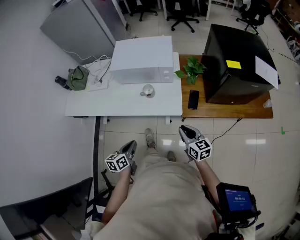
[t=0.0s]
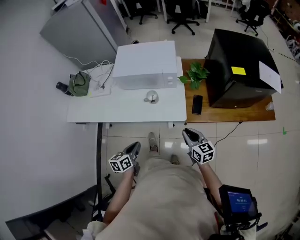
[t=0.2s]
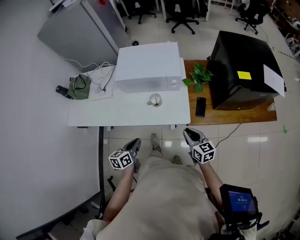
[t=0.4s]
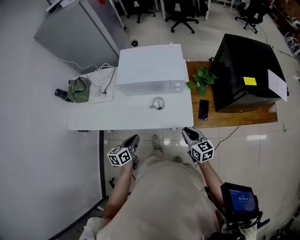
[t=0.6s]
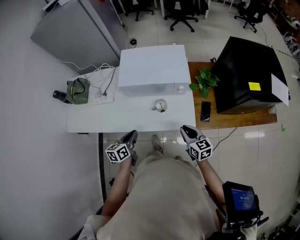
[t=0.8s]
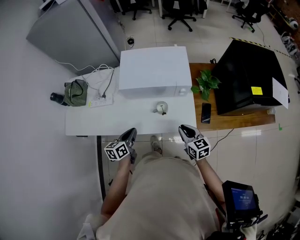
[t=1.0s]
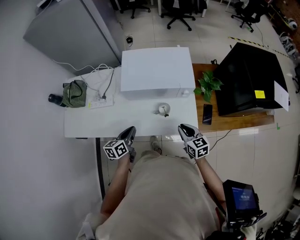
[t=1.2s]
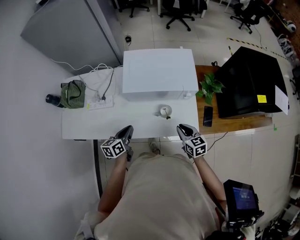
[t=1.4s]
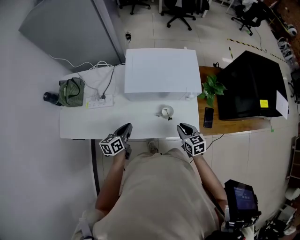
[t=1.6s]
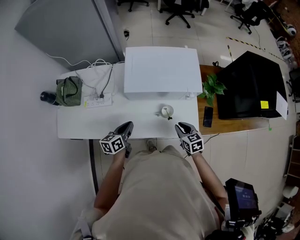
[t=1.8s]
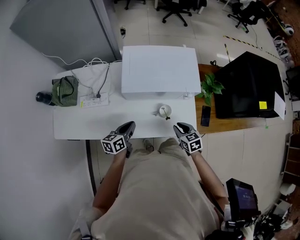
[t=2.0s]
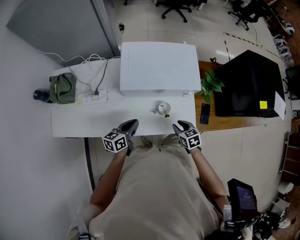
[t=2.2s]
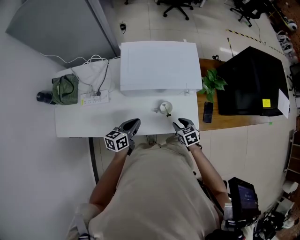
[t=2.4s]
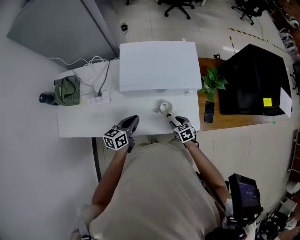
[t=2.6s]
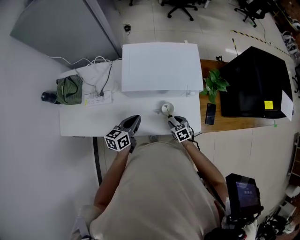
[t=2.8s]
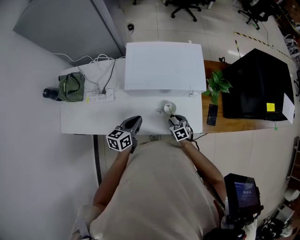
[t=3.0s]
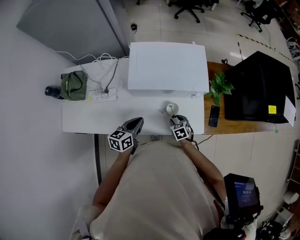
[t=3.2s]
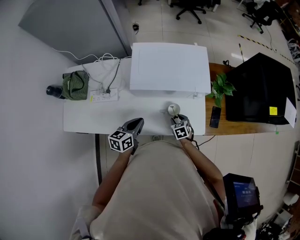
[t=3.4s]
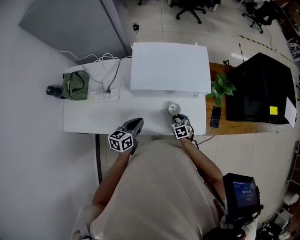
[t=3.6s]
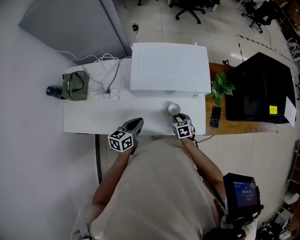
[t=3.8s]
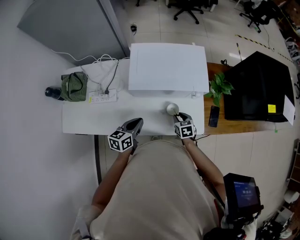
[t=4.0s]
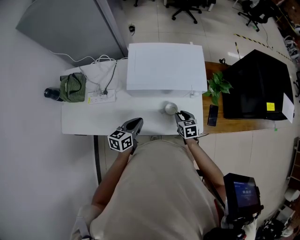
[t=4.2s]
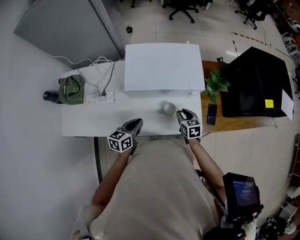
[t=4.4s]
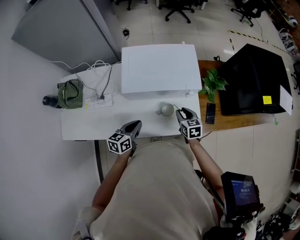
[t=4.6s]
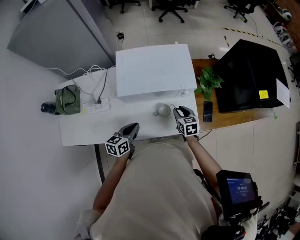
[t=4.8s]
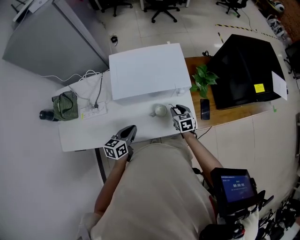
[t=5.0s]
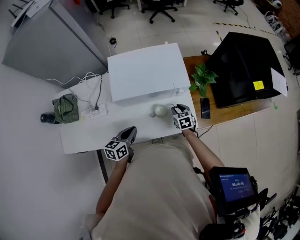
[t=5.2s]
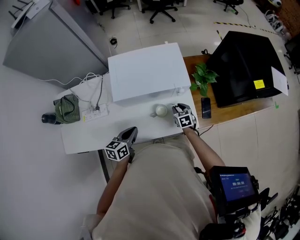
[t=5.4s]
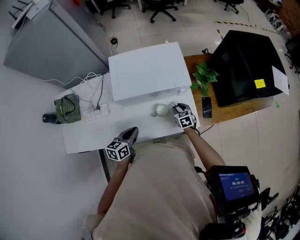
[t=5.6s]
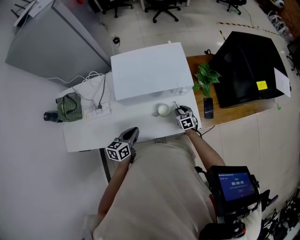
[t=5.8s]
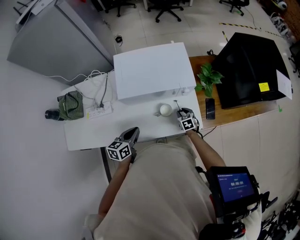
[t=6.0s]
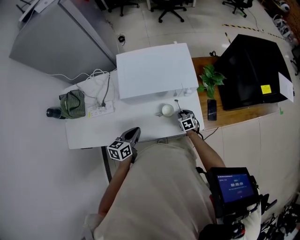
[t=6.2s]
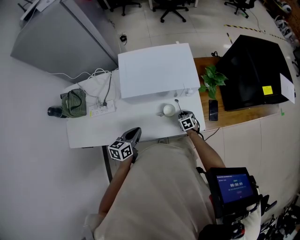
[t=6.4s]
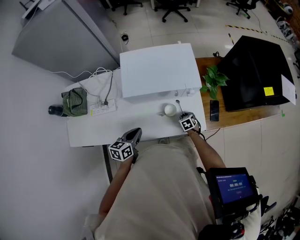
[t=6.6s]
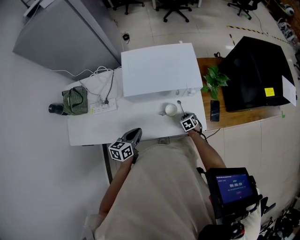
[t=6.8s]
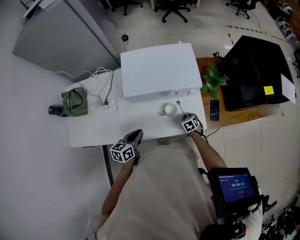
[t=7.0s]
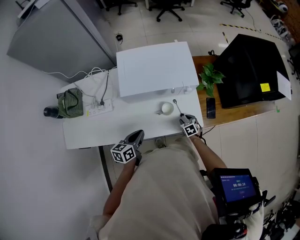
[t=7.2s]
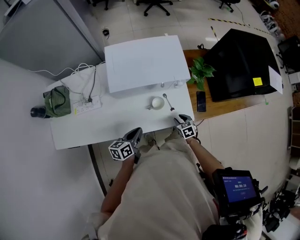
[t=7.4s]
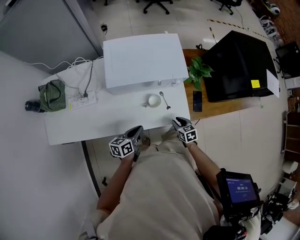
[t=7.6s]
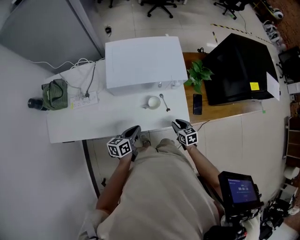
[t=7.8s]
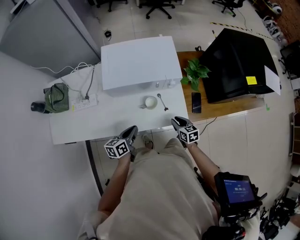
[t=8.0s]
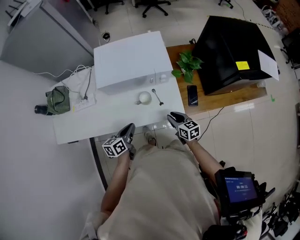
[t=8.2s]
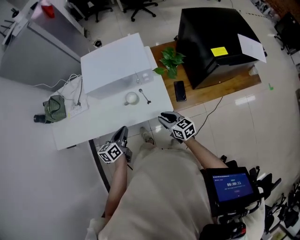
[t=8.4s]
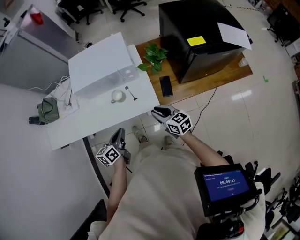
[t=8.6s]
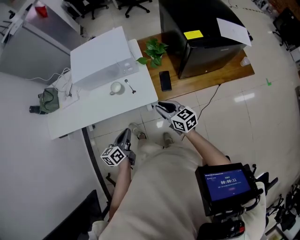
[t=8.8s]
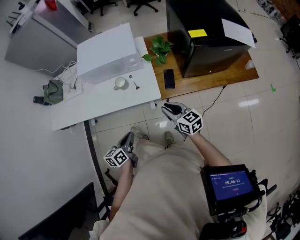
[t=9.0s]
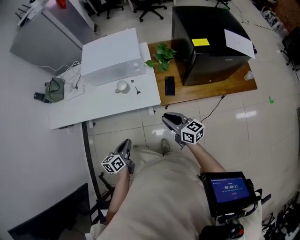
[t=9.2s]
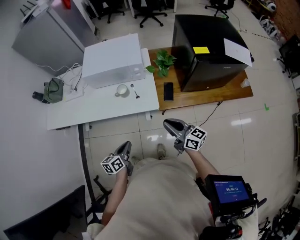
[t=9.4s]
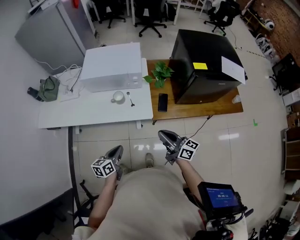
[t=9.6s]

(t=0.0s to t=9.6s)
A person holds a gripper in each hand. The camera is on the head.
t=0.0s - t=1.6s: Both grippers travel together forward and to the left, roughly 30 cm.
t=1.6s - t=3.2s: The right gripper heads downward, covering some 15 cm, turns by some 20 degrees, and opens its fingers; the left gripper moves about 5 cm.
t=3.2s - t=4.8s: The right gripper travels upward, forward and to the right by about 15 cm, and swivels some 20 degrees.
t=4.8s - t=6.4s: The right gripper moves downward, some 15 cm, and rotates roughly 20 degrees.
t=6.4s - t=8.0s: The right gripper is displaced upward and backward by approximately 15 cm, and turns by about 20 degrees; the left gripper goes roughly 5 cm to the right.
t=8.0s - t=9.6s: The left gripper travels backward and to the right by some 30 cm. The right gripper moves upward, backward and to the right, about 30 cm, tips its fingers upward by some 40 degrees, and closes its fingers.

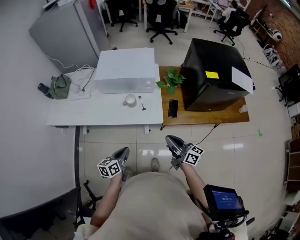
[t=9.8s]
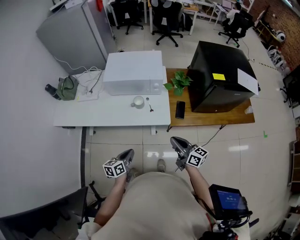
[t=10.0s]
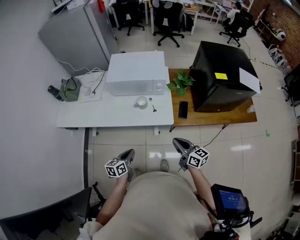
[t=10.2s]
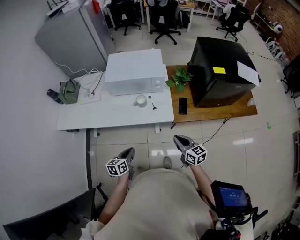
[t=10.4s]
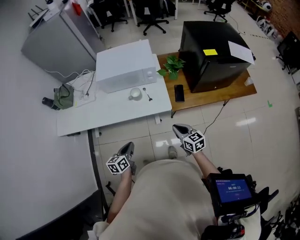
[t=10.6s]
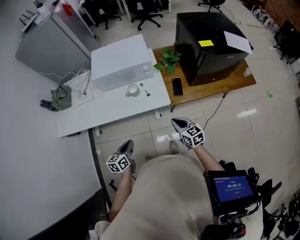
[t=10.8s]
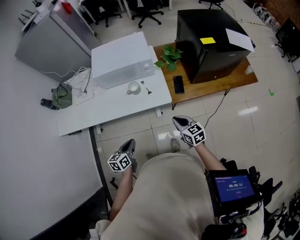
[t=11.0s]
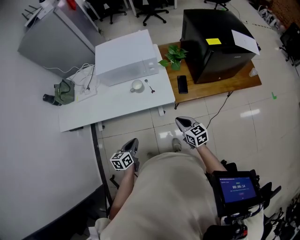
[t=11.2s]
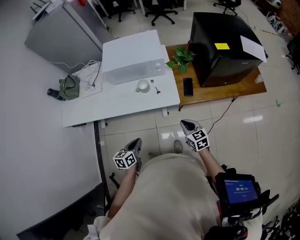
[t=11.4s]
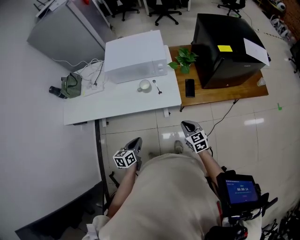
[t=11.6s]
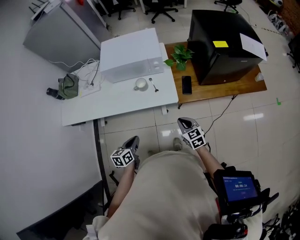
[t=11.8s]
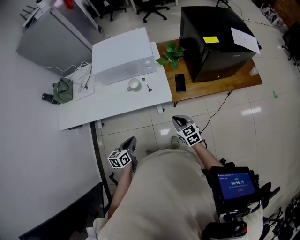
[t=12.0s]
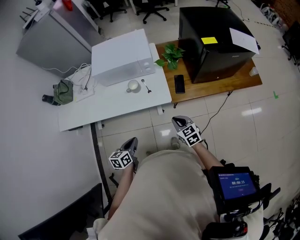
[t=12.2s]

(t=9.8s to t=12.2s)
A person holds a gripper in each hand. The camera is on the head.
t=9.8s - t=11.0s: The left gripper travels to the left by roughly 5 cm, while the right gripper shifts about 10 cm downward, and tips its fingers downward by roughly 30 degrees.
t=11.0s - t=12.2s: The grippers stay close to where they were, moving slightly.

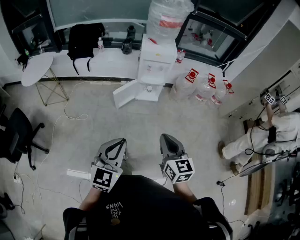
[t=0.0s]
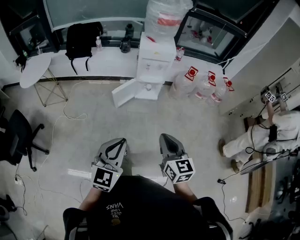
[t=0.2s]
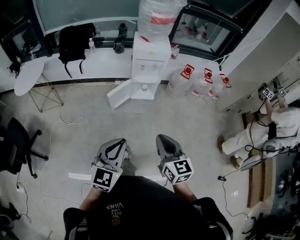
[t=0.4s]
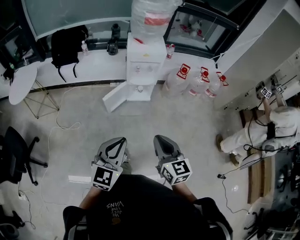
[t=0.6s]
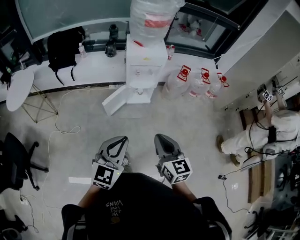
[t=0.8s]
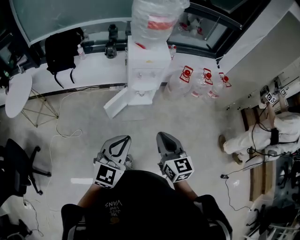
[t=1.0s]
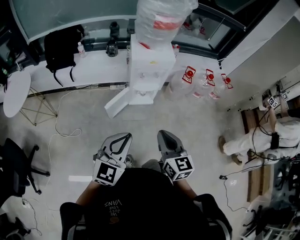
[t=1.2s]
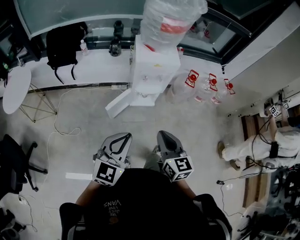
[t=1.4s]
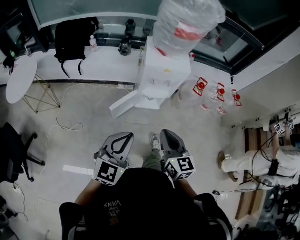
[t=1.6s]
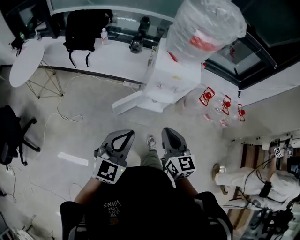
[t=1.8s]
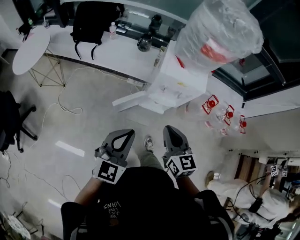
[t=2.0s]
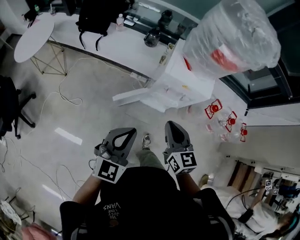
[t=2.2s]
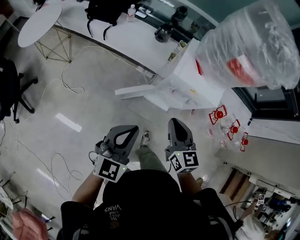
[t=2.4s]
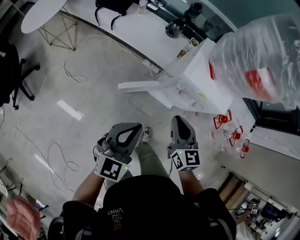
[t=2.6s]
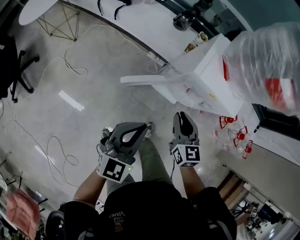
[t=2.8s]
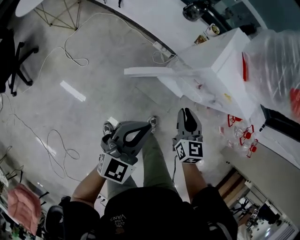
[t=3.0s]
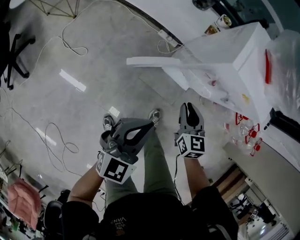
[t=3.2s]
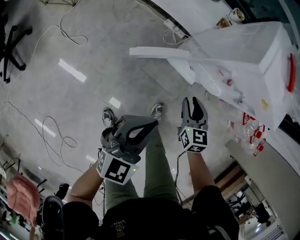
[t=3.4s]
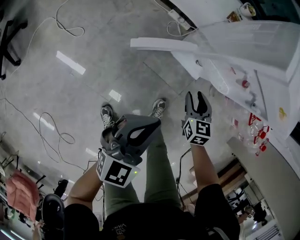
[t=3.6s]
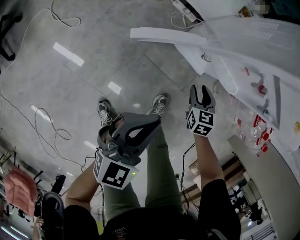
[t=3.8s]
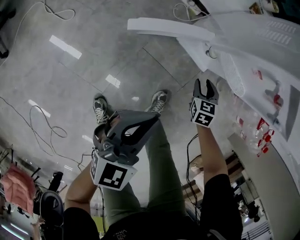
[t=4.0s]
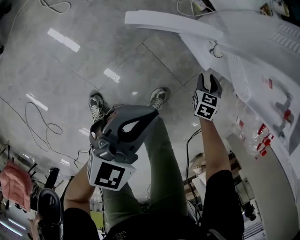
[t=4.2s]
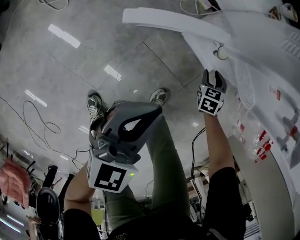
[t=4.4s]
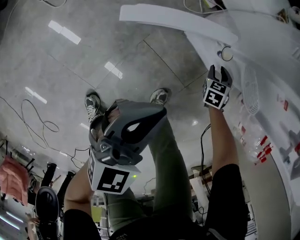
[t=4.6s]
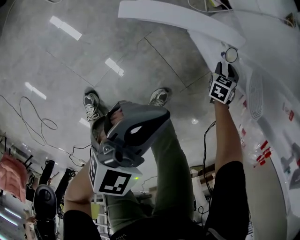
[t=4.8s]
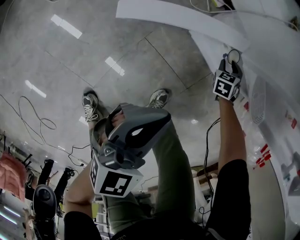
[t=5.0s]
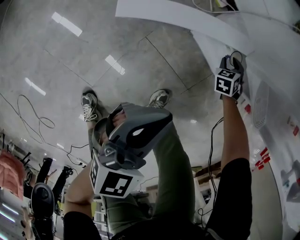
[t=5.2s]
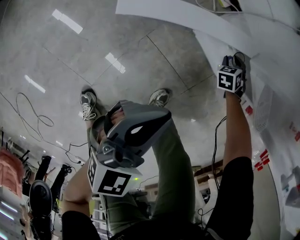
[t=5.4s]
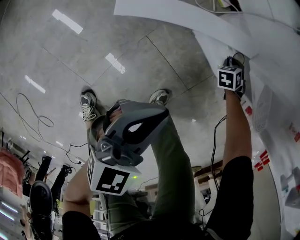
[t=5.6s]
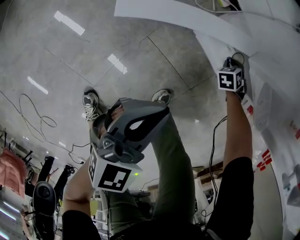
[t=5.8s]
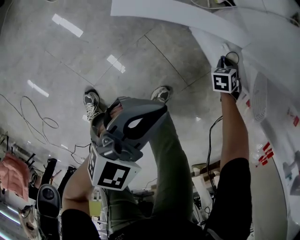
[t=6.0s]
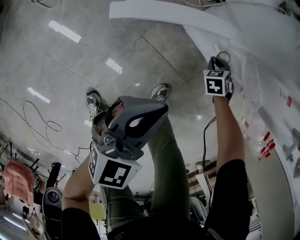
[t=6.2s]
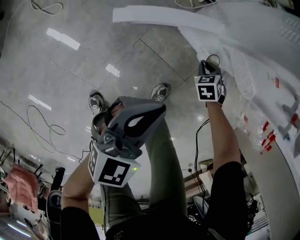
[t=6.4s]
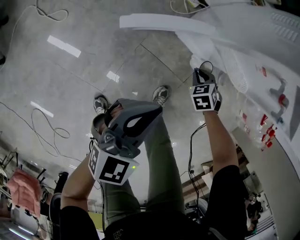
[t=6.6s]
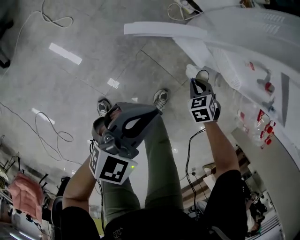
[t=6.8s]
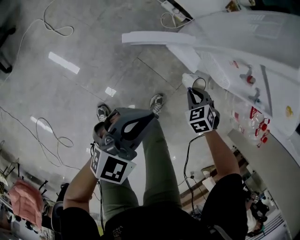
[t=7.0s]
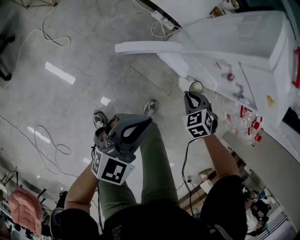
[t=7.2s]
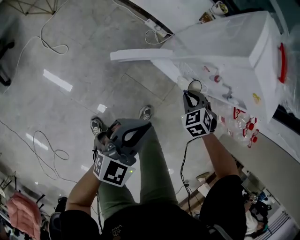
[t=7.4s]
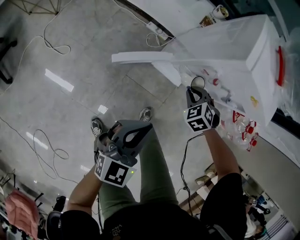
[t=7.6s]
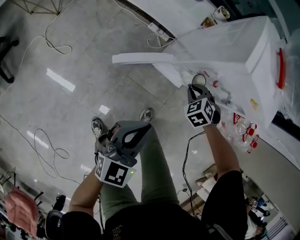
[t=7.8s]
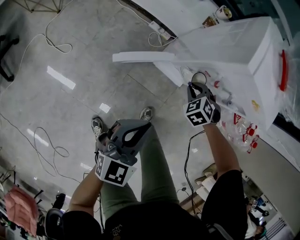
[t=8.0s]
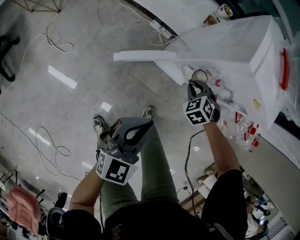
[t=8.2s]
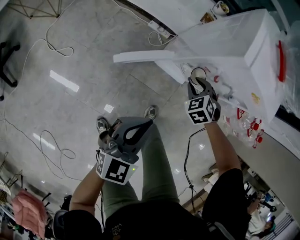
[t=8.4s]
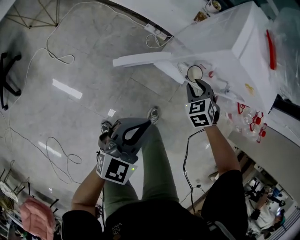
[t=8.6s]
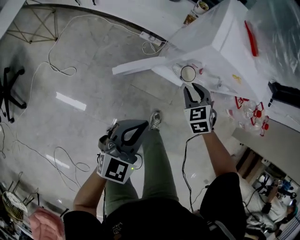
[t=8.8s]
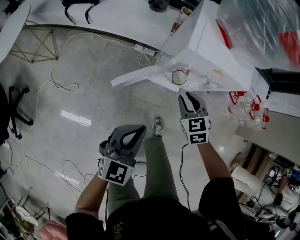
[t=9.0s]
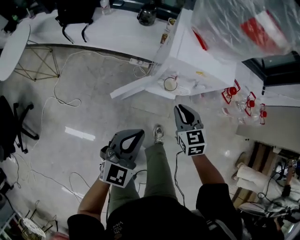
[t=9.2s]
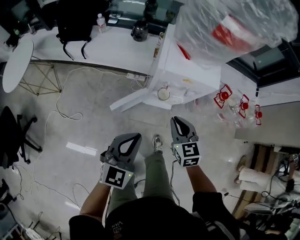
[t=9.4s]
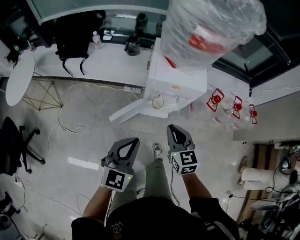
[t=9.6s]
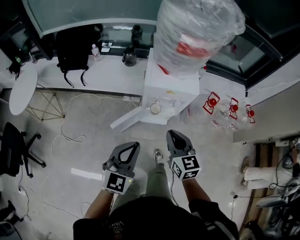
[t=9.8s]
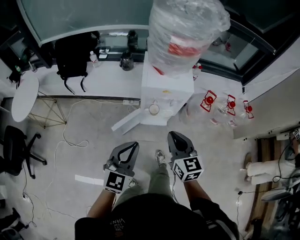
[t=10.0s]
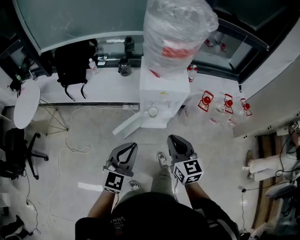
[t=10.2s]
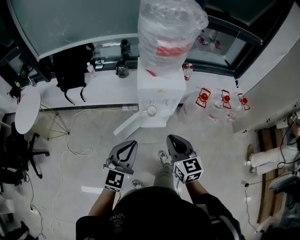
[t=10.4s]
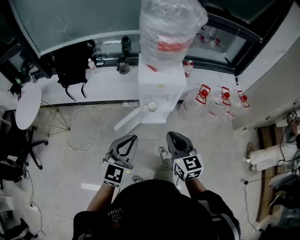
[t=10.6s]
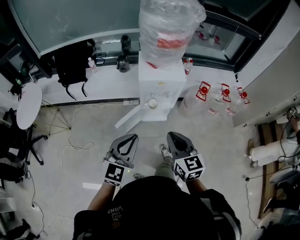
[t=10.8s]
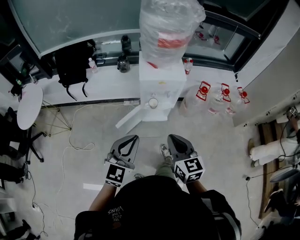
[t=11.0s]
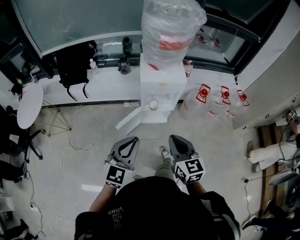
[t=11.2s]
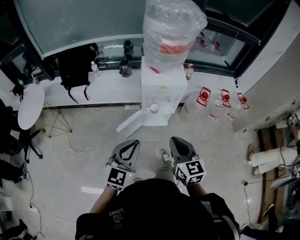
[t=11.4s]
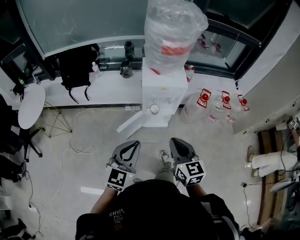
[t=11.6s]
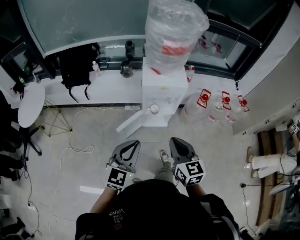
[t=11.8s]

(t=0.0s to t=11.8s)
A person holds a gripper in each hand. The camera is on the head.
t=0.0s - t=1.4s: The two grippers go roughly 30 cm forward.
t=1.4s - t=3.0s: The left gripper changes place by about 30 cm, and swivels about 30 degrees, while the right gripper ends up about 40 cm from where it was, and rotates roughly 30 degrees.
t=3.0s - t=4.4s: Both grippers travel together downward, roughly 40 cm. The right gripper points its fingers approximately 30 degrees further downward, and opens.
t=4.4s - t=6.0s: The left gripper shifts approximately 10 cm downward. The right gripper travels downward and forward by some 10 cm, swivels approximately 30 degrees, and closes its fingers.
t=6.0s - t=7.4s: Both grippers travel together upward, roughly 35 cm.
t=7.4s - t=8.8s: The left gripper heads upward, covering about 5 cm. The right gripper travels upward by roughly 10 cm, and changes its angle by roughly 30 degrees.
t=8.8s - t=10.4s: The left gripper moves upward and backward, some 30 cm, while the right gripper heads upward and backward, covering some 50 cm, and tips its fingers upward by some 40 degrees.
t=10.4s - t=11.8s: Both grippers travel together backward, approximately 5 cm.
